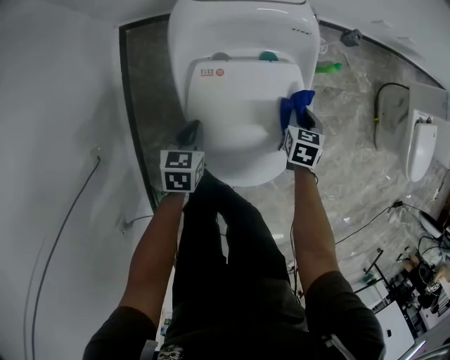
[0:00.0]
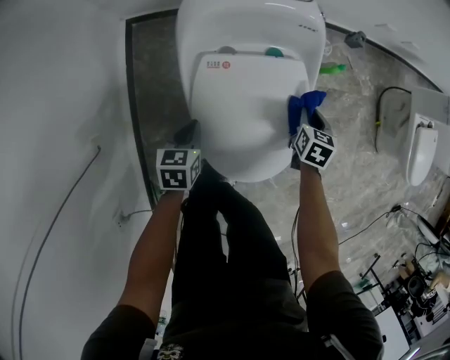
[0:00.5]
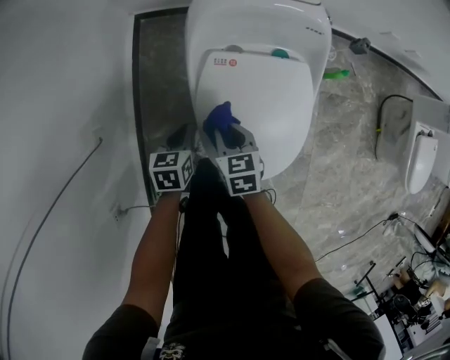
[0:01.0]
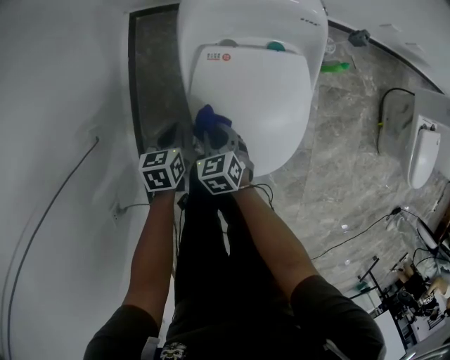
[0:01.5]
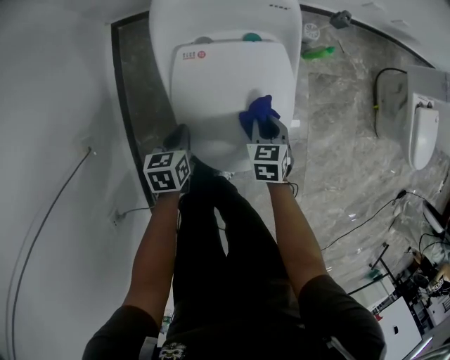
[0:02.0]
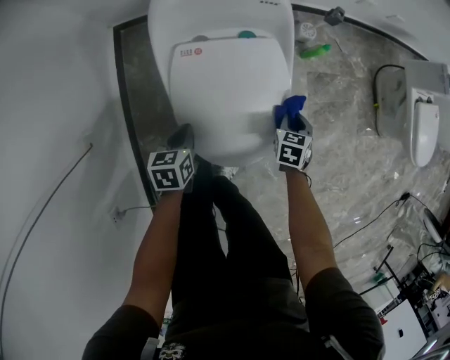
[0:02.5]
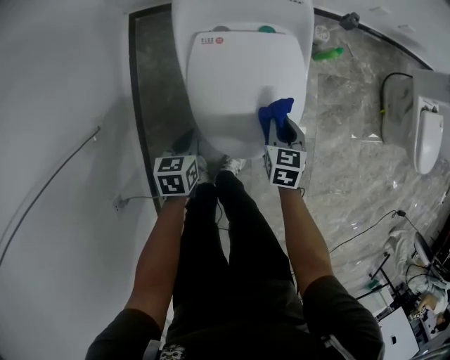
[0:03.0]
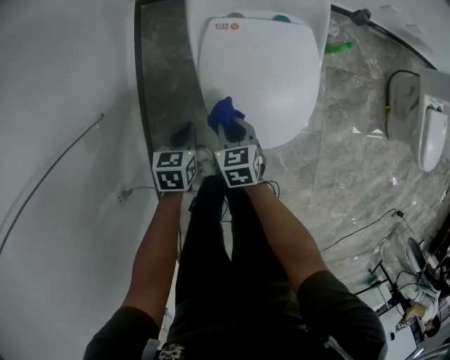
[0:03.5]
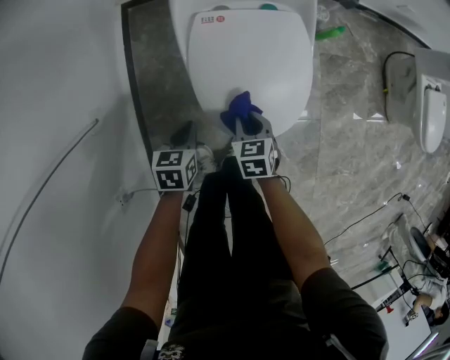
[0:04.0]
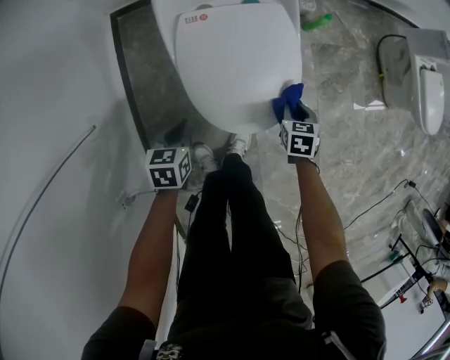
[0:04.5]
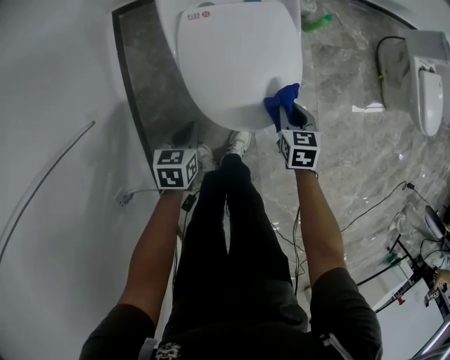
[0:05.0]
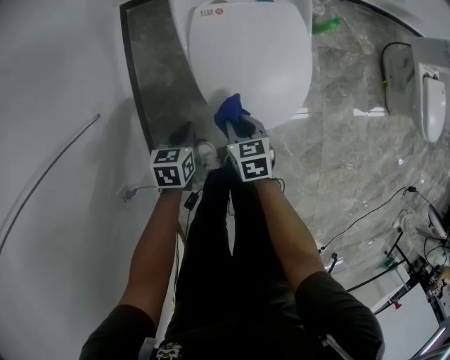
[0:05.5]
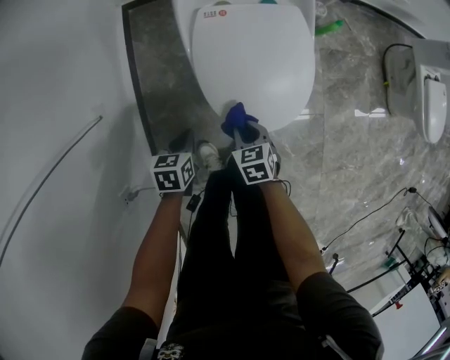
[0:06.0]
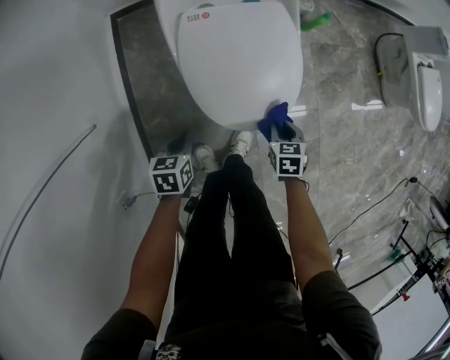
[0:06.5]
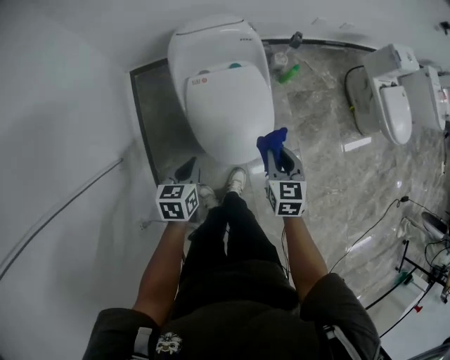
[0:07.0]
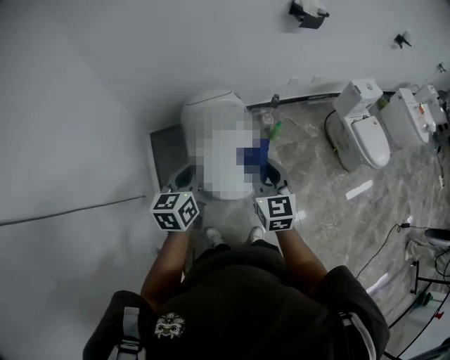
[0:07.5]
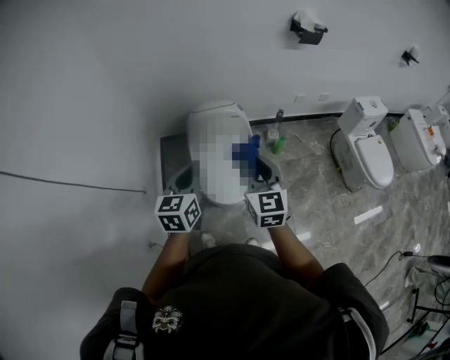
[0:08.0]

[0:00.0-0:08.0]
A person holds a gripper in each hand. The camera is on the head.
0:00.0 to 0:02.0: The left gripper changes place by about 5 cm.
0:02.0 to 0:04.0: The left gripper shifts by roughly 10 cm. Meanwhile the right gripper moves some 15 cm.
0:04.0 to 0:06.0: Both grippers move backward, about 5 cm. The right gripper goes to the right and returns, some 20 cm each way.
0:06.0 to 0:08.0: The two grippers go about 60 cm upward. The right gripper angles its fingers upward, by roughly 50 degrees. The left gripper angles its fingers upward, by about 40 degrees.

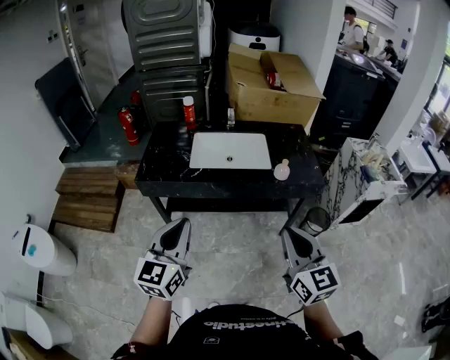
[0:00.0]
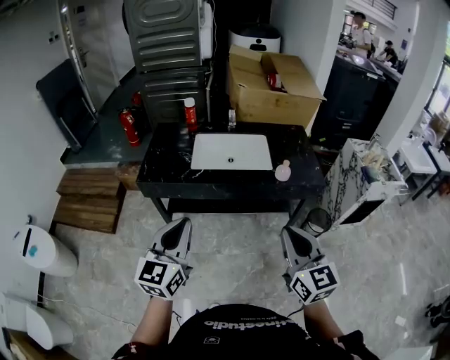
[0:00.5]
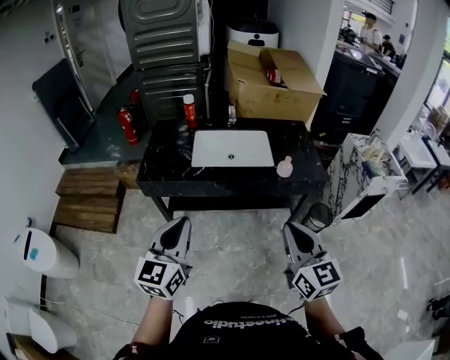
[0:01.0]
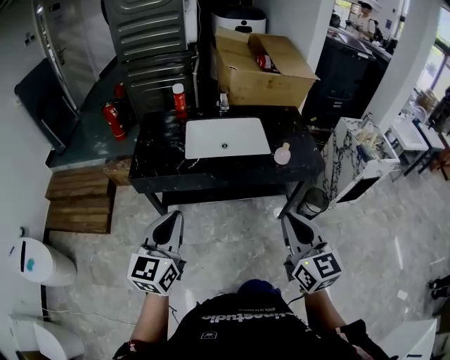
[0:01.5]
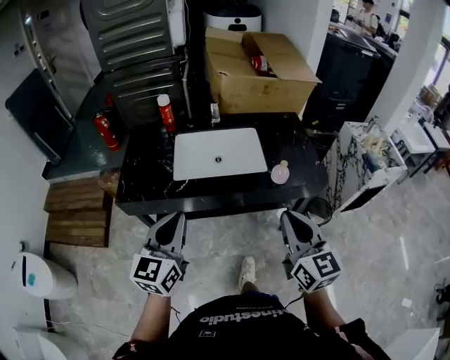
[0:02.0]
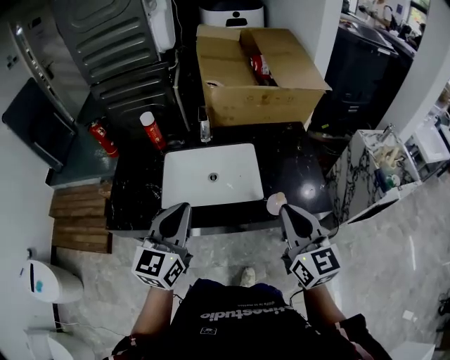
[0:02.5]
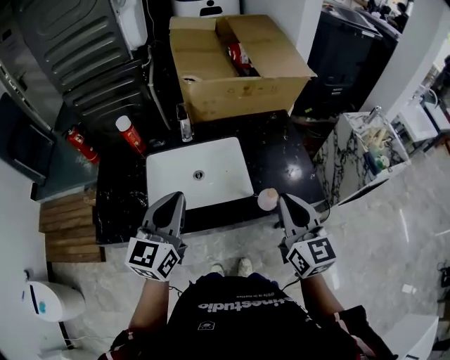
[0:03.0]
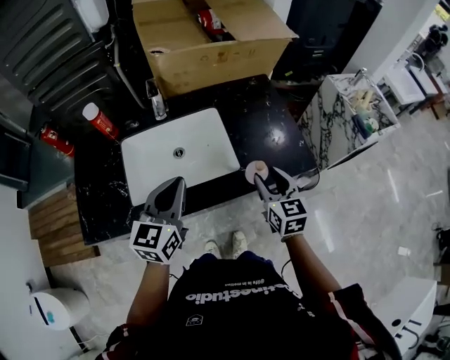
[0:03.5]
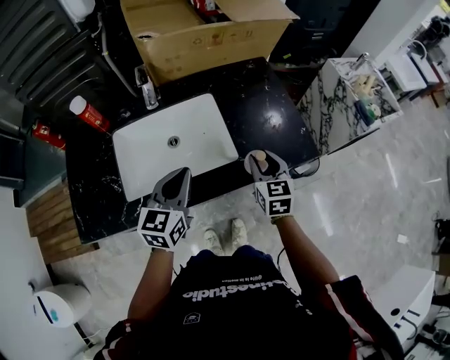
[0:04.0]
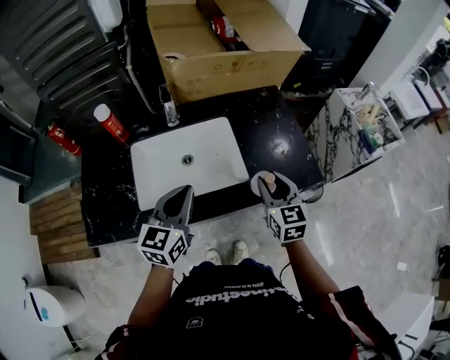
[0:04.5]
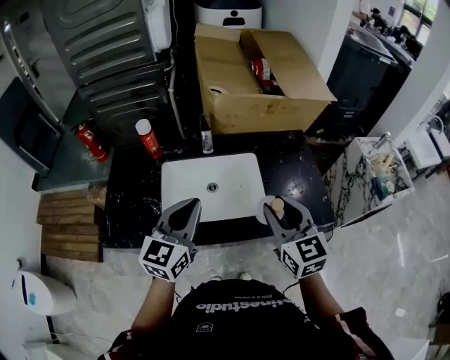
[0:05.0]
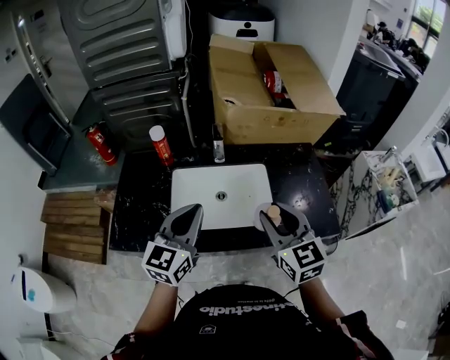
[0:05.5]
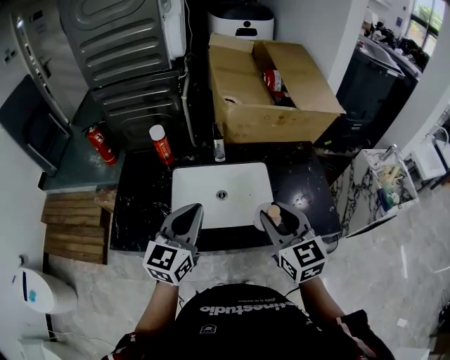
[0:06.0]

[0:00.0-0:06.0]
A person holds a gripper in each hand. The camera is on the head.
0:00.0 to 0:02.0: The two grippers go roughly 15 cm forward.
0:02.0 to 0:04.0: The left gripper is displaced forward, downward and to the right by roughly 35 cm, and turns by some 20 degrees; the right gripper shifts approximately 40 cm forward and downward, turns by roughly 30 degrees, and opens.
0:04.0 to 0:06.0: Both grippers move upward and to the left, about 20 cm. The right gripper swivels approximately 30 degrees.

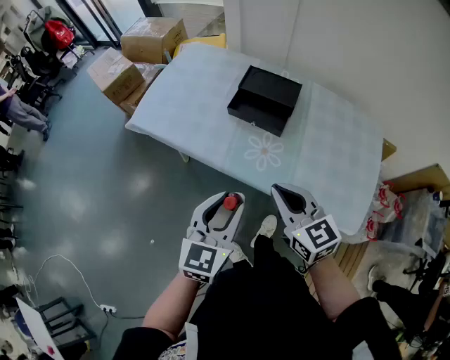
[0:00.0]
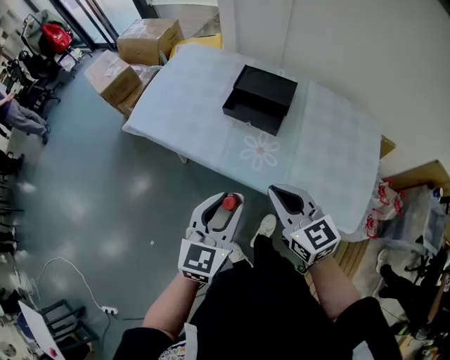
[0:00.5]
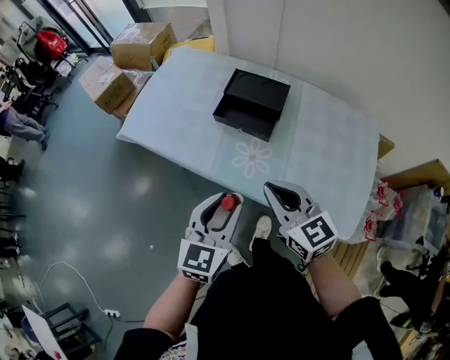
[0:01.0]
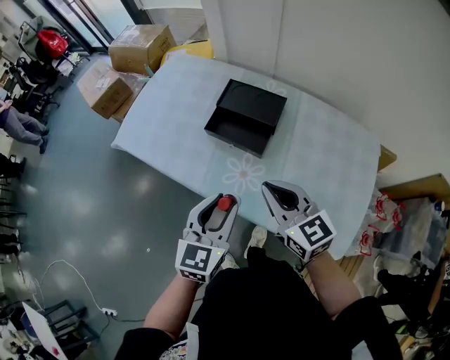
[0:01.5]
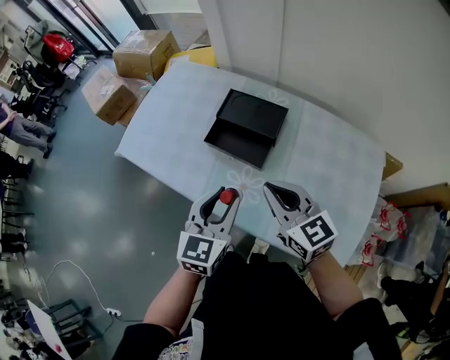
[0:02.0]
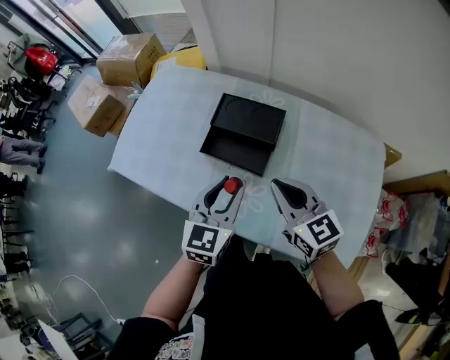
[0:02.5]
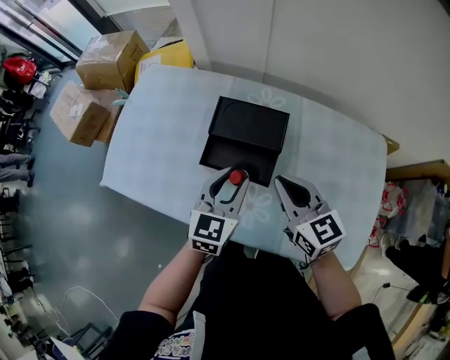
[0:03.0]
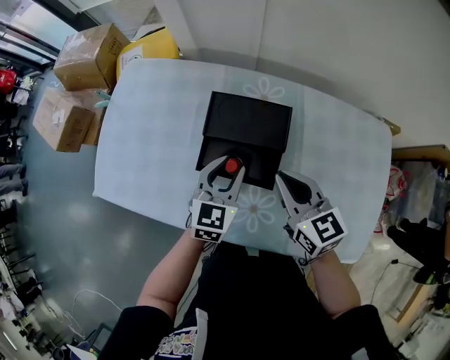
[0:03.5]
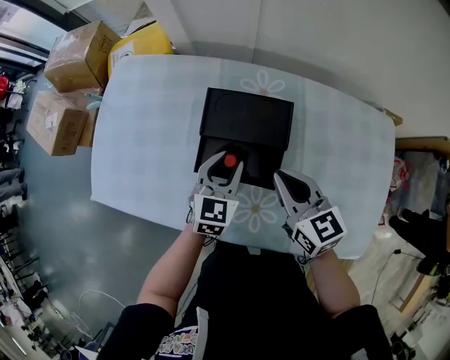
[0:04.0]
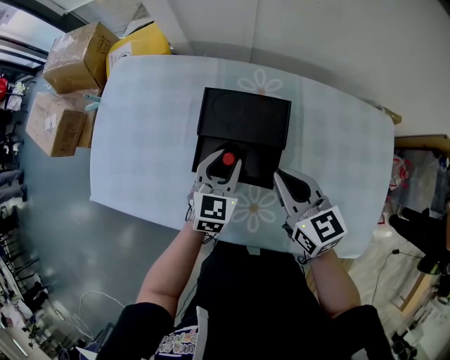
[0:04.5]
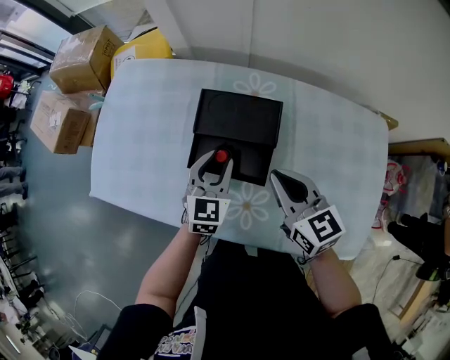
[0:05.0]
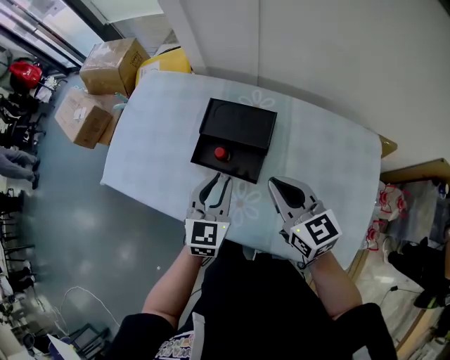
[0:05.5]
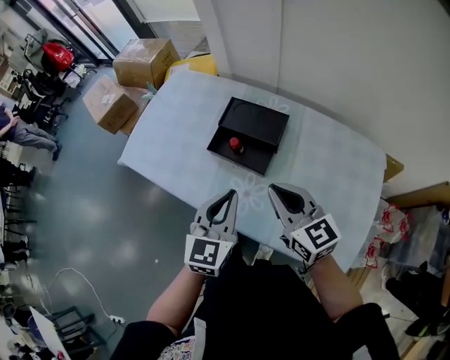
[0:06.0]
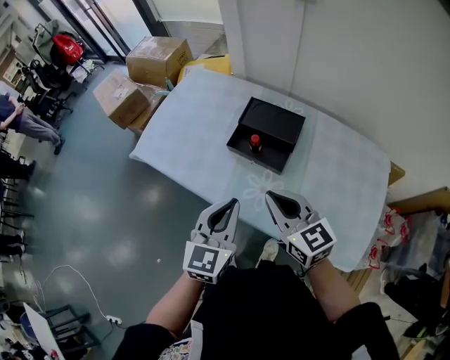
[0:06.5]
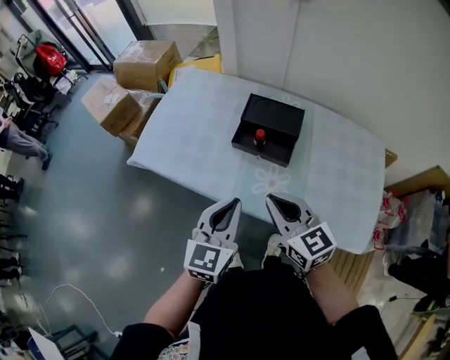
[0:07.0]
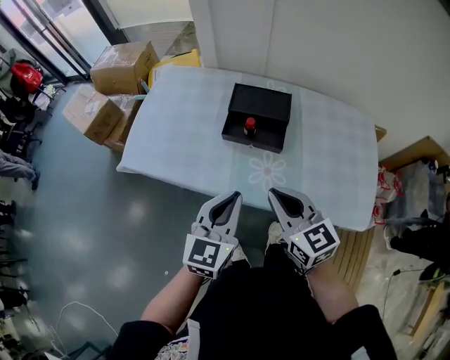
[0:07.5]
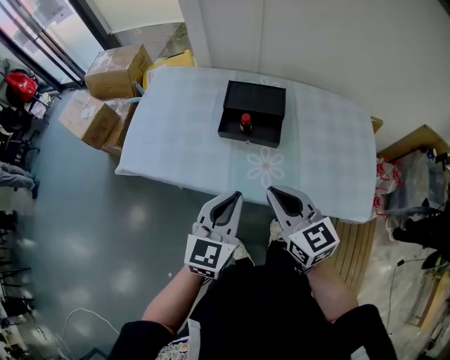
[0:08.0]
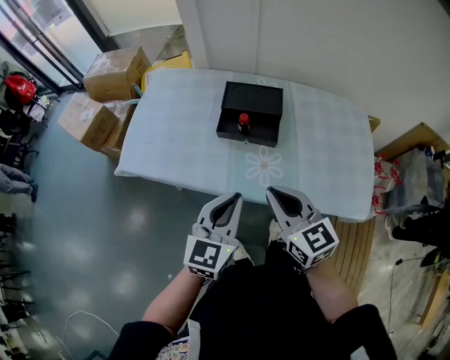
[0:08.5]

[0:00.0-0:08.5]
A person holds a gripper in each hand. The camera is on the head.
0:00.0 to 0:02.0: The two grippers go about 20 cm forward and to the right.
0:02.0 to 0:04.0: Both grippers move forward and downward, approximately 25 cm. The right gripper swivels about 20 degrees.
0:04.0 to 0:06.5: The two grippers go roughly 30 cm backward and upward. The left gripper changes its angle by roughly 20 degrees, and closes up. The right gripper changes its angle by about 20 degrees.
0:06.5 to 0:08.5: The left gripper travels to the left by approximately 5 cm. The right gripper shifts roughly 10 cm backward and to the left.

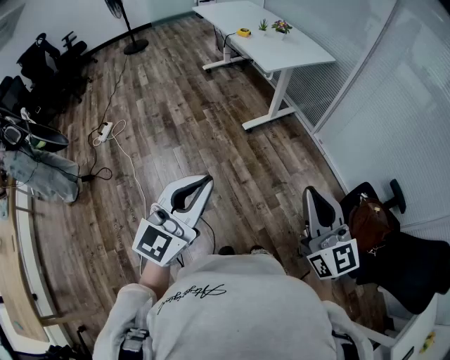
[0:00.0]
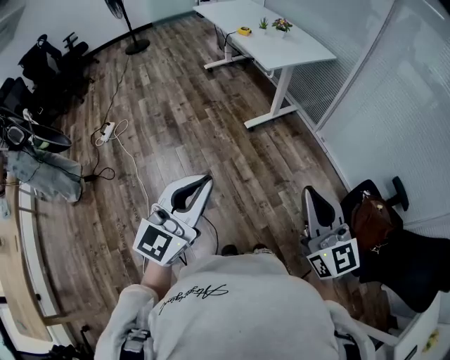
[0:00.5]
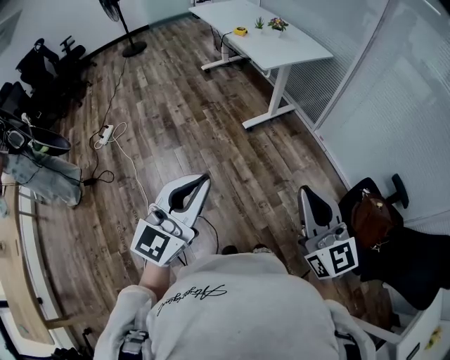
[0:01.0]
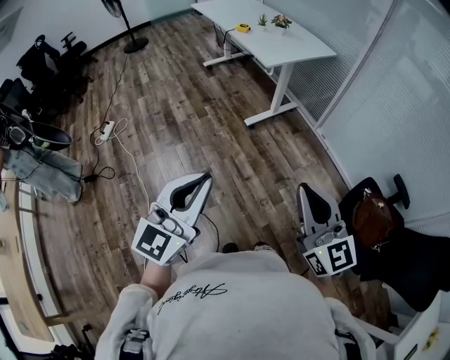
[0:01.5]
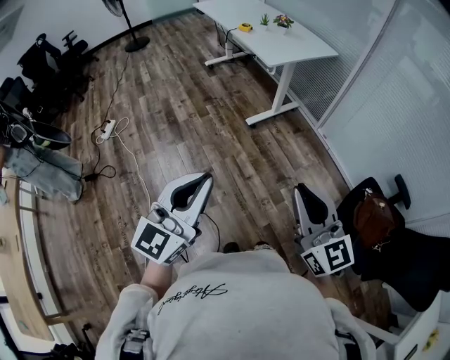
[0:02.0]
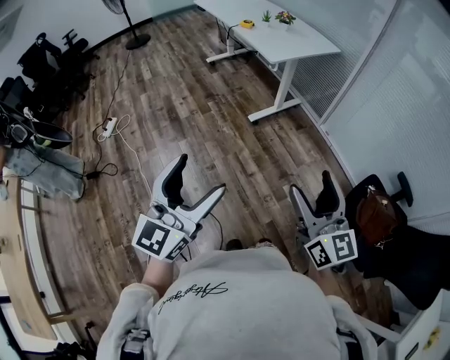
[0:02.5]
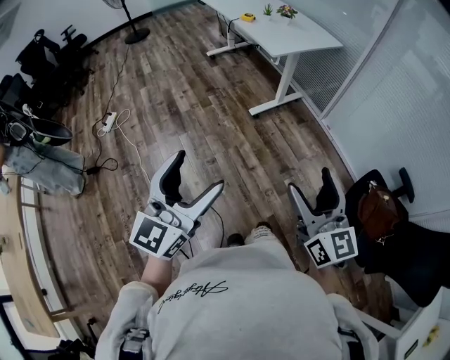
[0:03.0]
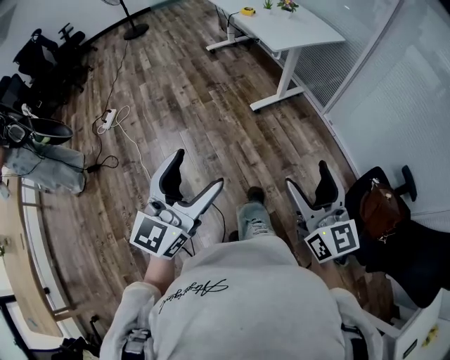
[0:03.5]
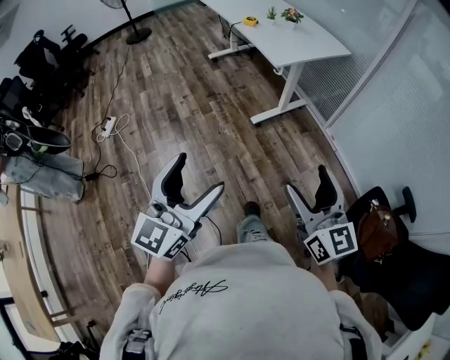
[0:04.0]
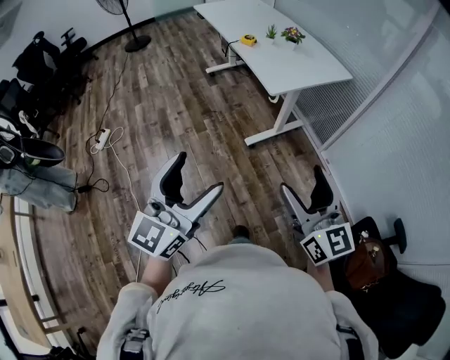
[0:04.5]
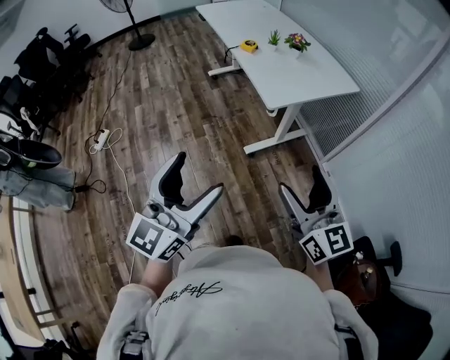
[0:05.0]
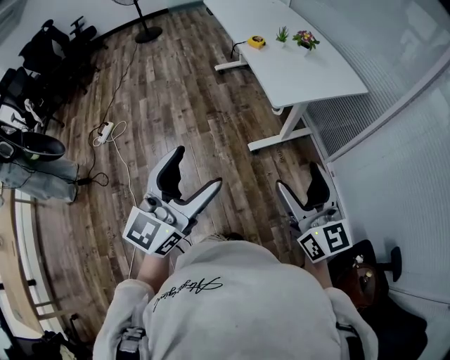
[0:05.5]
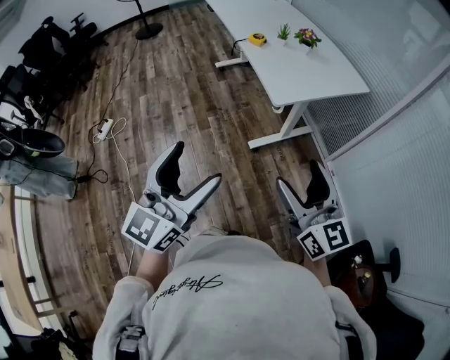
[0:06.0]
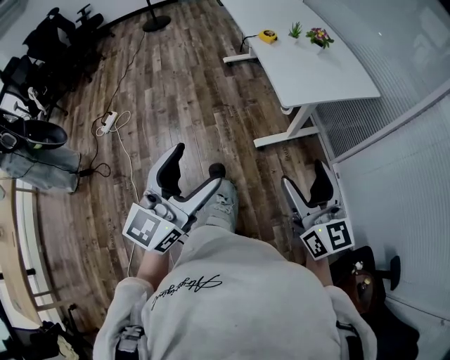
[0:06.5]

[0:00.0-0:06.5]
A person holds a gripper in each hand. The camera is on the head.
0:00.0 to 0:02.0: The grippers move only a little.
0:02.0 to 0:04.5: The grippers both shift forward by about 25 cm. The left gripper opens up. The right gripper opens its fingers.
0:04.5 to 0:06.5: The grippers both shift forward by roughly 15 cm.
